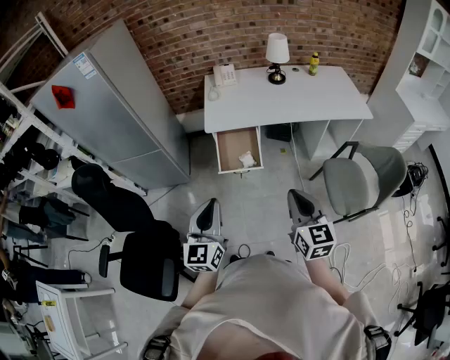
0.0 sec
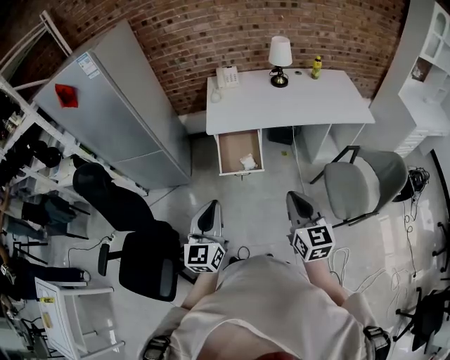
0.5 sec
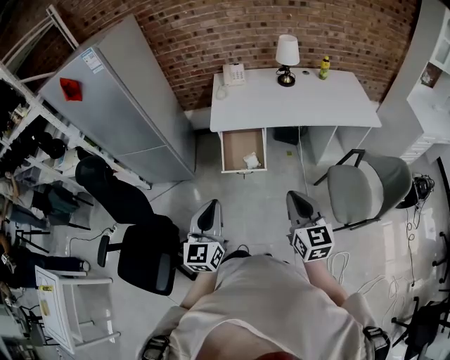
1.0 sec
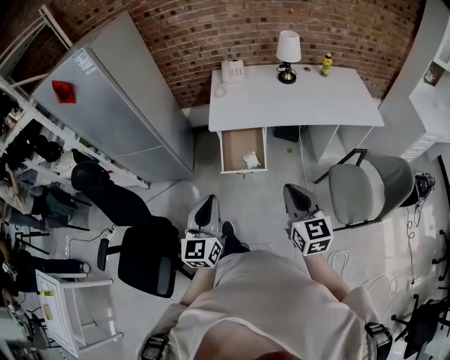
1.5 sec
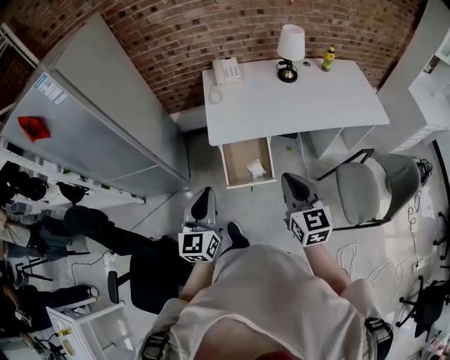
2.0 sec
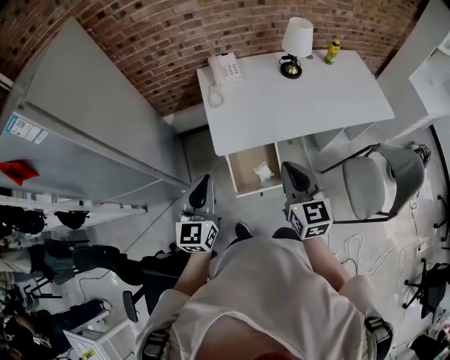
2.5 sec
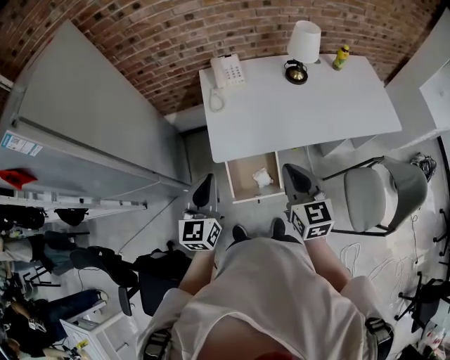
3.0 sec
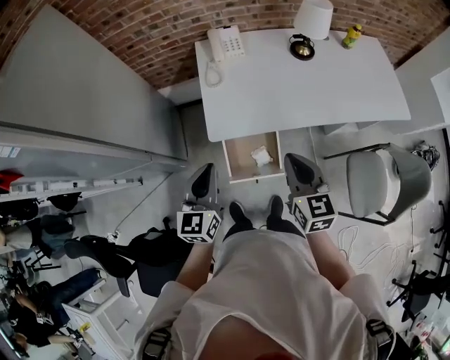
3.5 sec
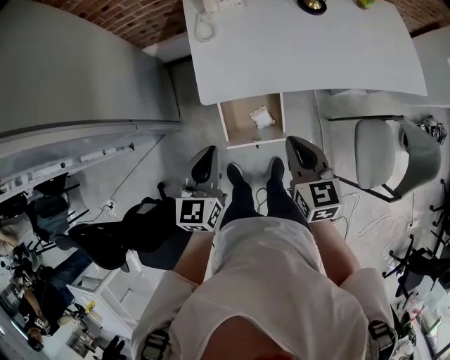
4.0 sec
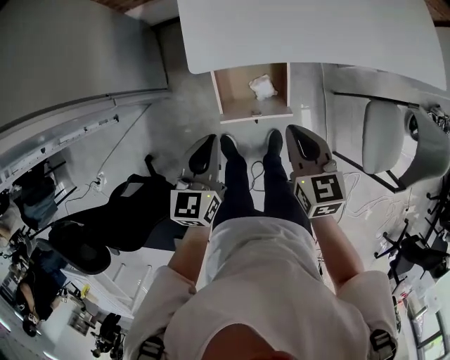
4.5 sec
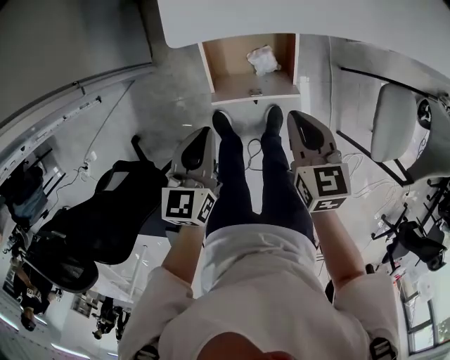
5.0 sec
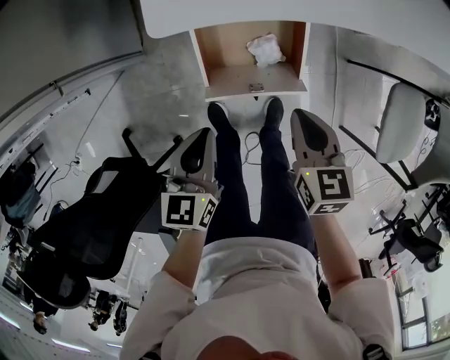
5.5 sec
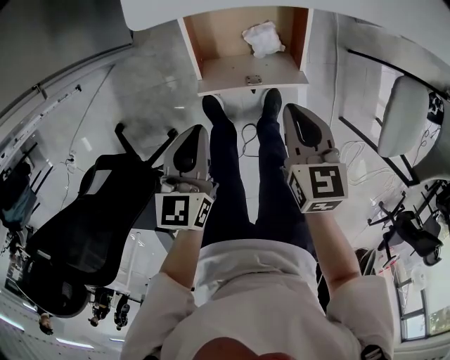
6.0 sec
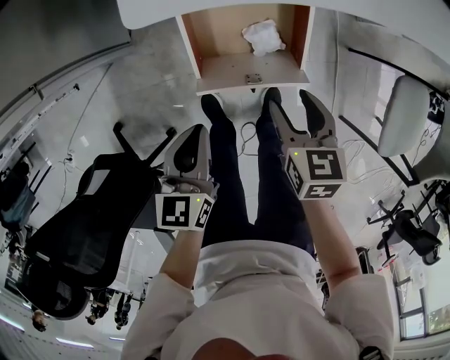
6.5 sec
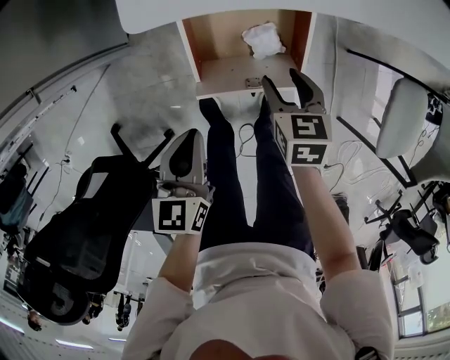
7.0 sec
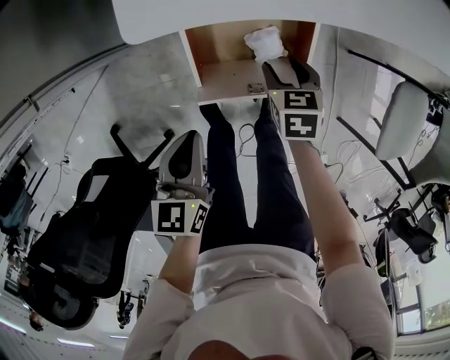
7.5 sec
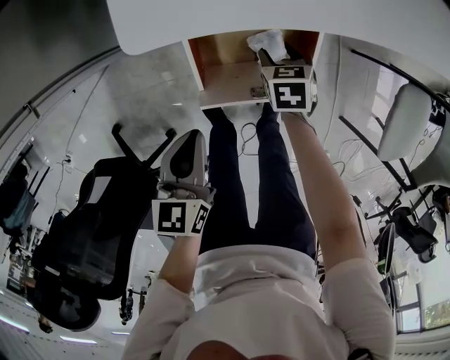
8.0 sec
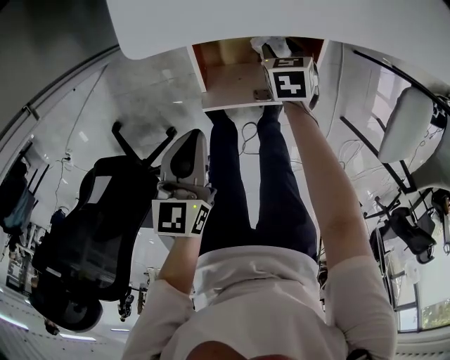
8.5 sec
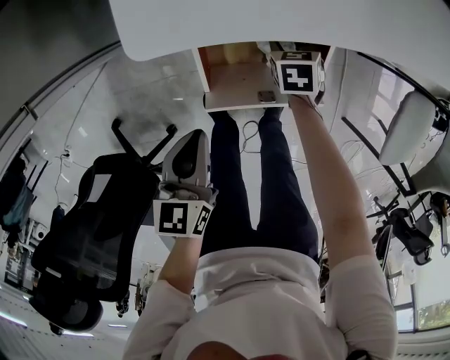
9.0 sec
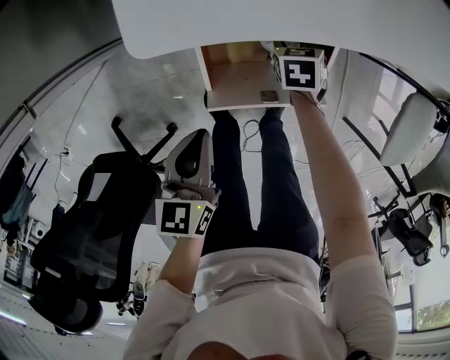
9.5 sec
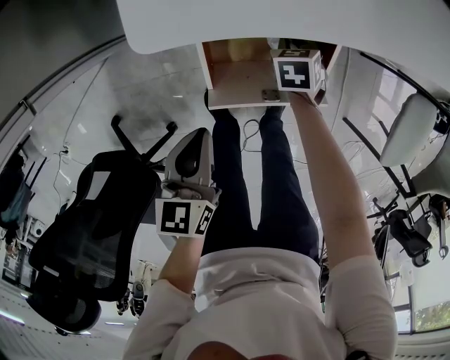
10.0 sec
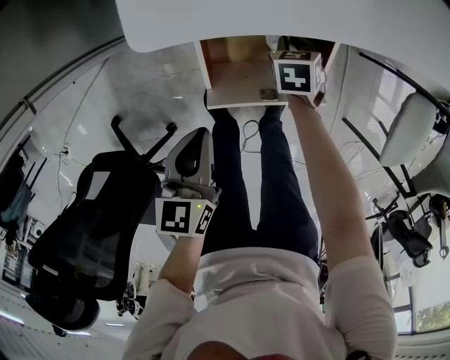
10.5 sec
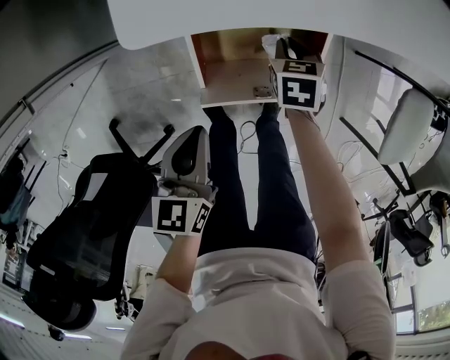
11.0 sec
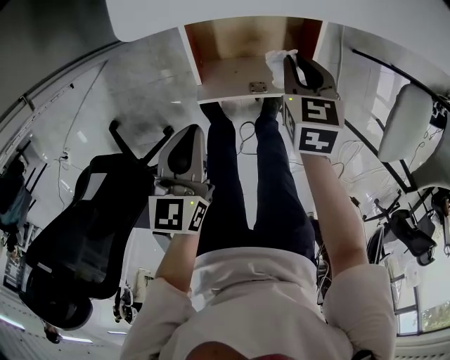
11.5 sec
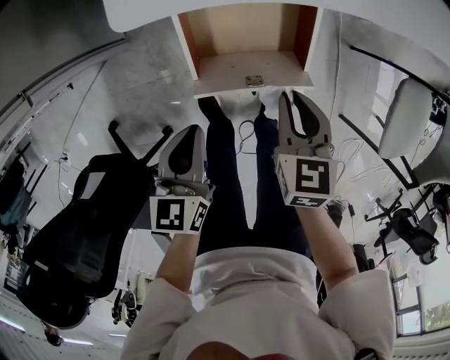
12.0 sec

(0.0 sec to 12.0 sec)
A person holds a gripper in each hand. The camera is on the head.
0.0 sec - 2.0 sec: Both grippers travel together forward, some 25 cm.
2.0 sec - 4.0 sec: Both grippers move forward and downward, approximately 20 cm.
4.0 sec - 6.0 sec: The two grippers go about 30 cm downward. The left gripper rotates about 20 degrees.
6.0 sec - 8.0 sec: The right gripper travels downward and forward by roughly 20 cm, and opens up.
8.0 sec - 10.0 sec: The right gripper moves some 5 cm, and closes up.
10.0 sec - 12.0 sec: The right gripper travels upward and backward by some 25 cm, and rotates roughly 20 degrees.

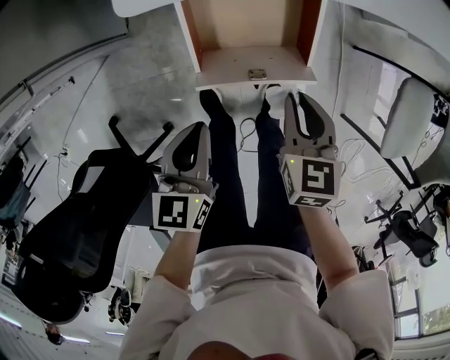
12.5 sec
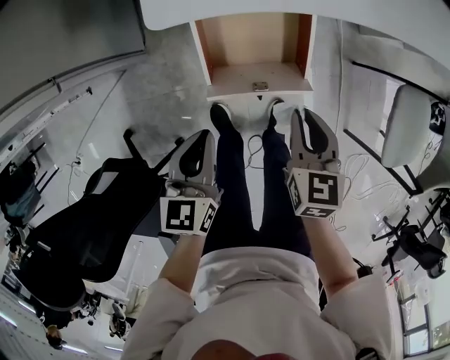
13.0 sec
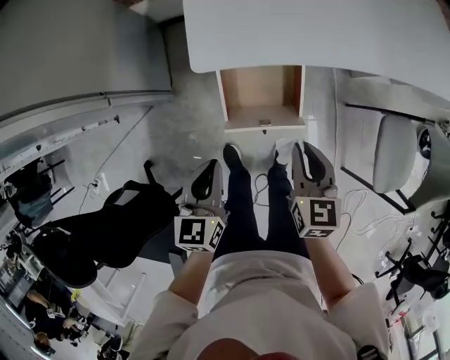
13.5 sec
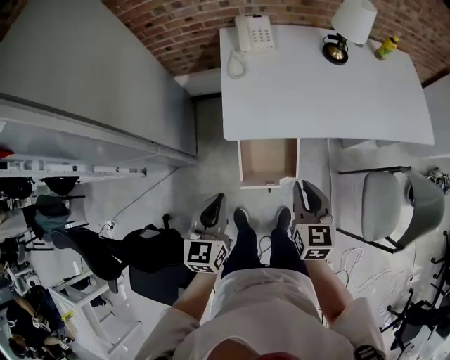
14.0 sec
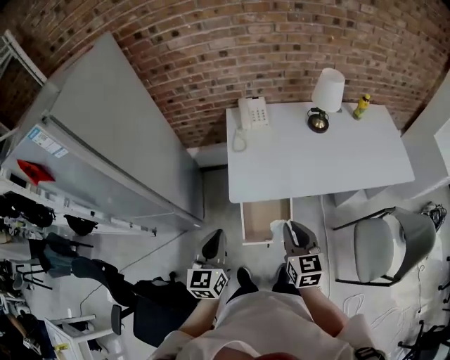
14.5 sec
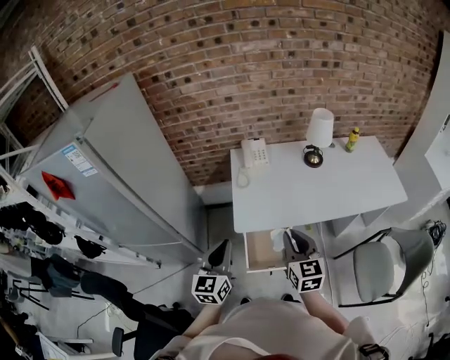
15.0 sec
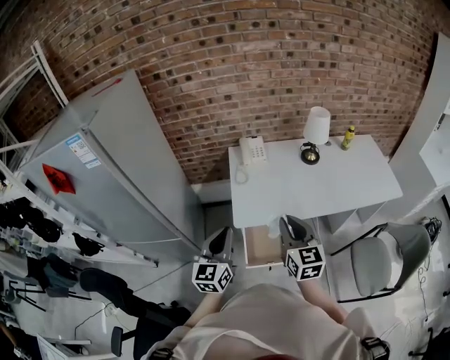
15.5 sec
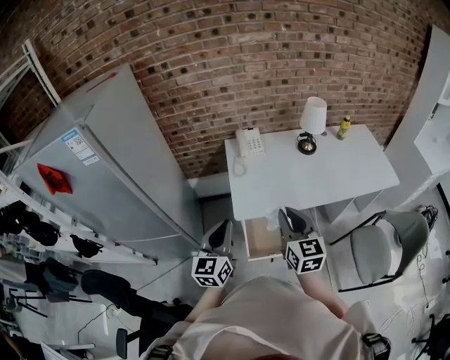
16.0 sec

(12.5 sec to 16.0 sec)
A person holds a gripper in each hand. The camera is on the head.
12.5 sec - 14.5 sec: Both grippers move upward, some 40 cm. The right gripper turns by roughly 30 degrees. Meanwhile the left gripper swivels roughly 30 degrees.
14.5 sec - 16.0 sec: The grippers both shift upward by about 10 cm.

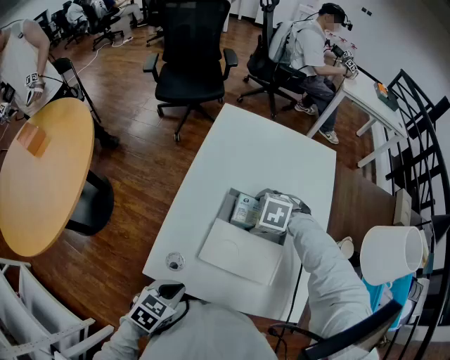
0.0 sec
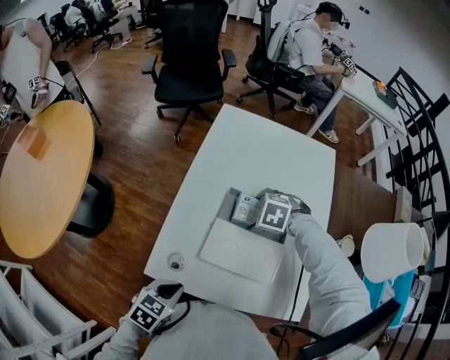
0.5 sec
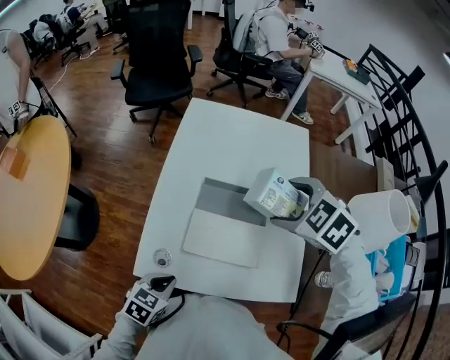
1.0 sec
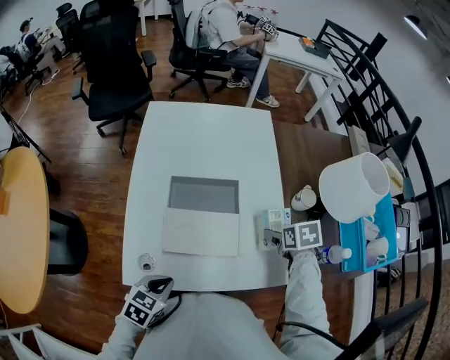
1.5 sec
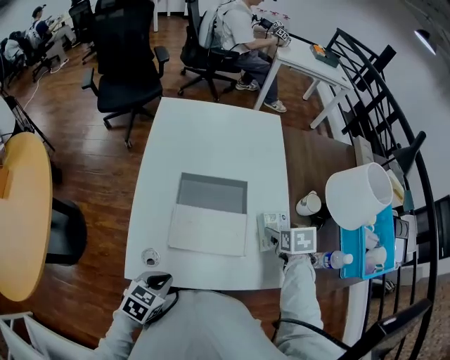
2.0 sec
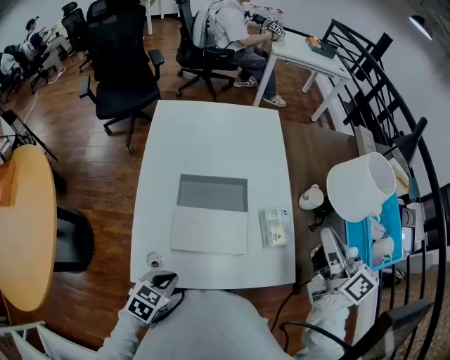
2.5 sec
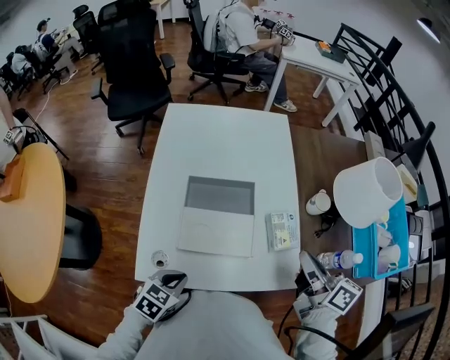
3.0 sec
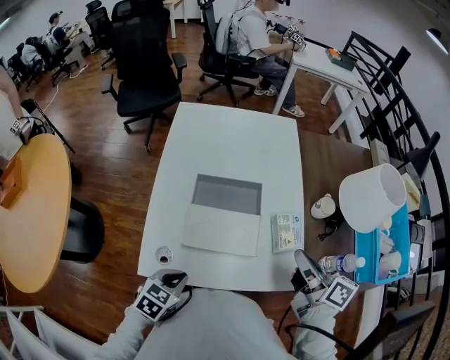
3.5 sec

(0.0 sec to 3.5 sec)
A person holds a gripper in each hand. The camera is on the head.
0.0 sec - 2.0 sec: The right gripper goes upward and returns, some 20 cm each way, and rolls clockwise, seen from behind, by approximately 80 degrees.
2.0 sec - 3.5 sec: The right gripper is displaced upward and backward by approximately 15 cm, angles its fingers upward, by about 50 degrees, and closes up.

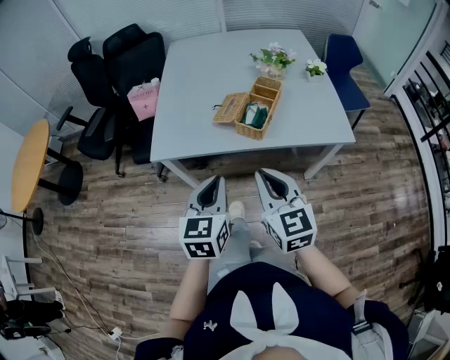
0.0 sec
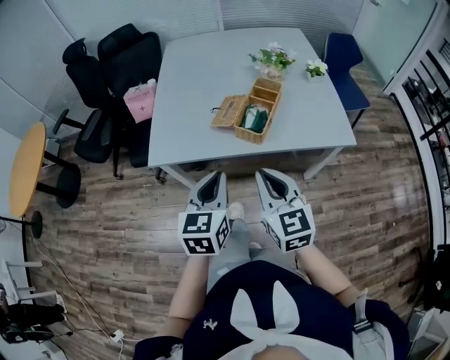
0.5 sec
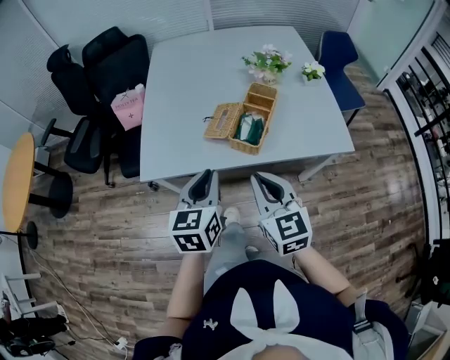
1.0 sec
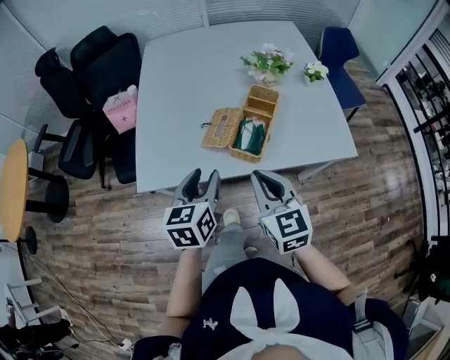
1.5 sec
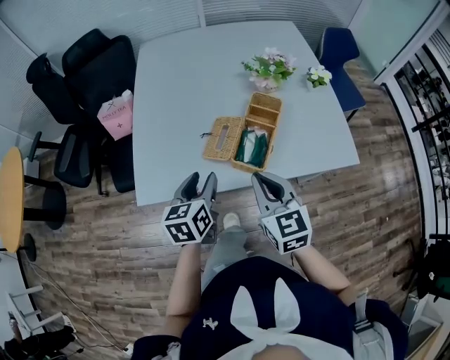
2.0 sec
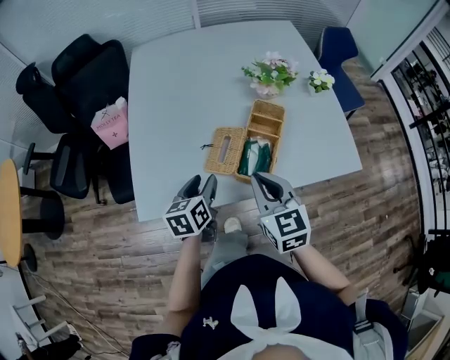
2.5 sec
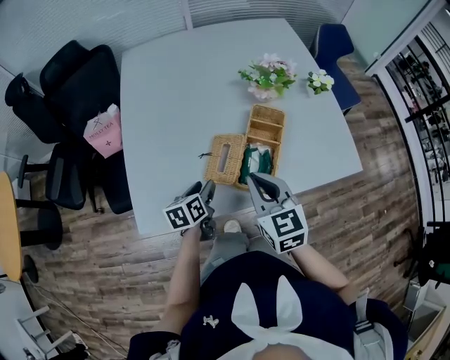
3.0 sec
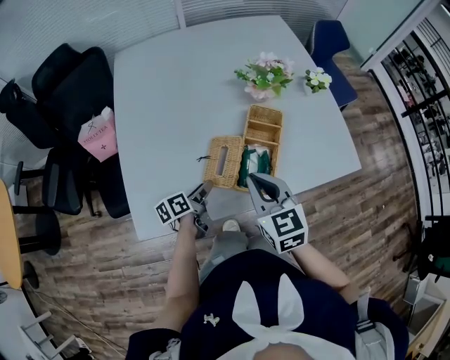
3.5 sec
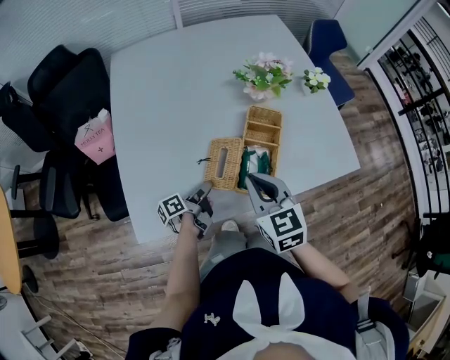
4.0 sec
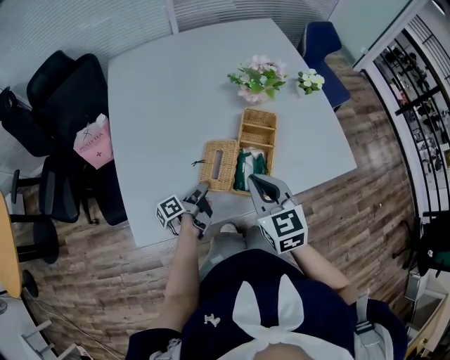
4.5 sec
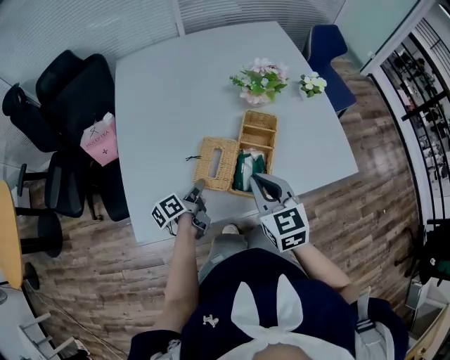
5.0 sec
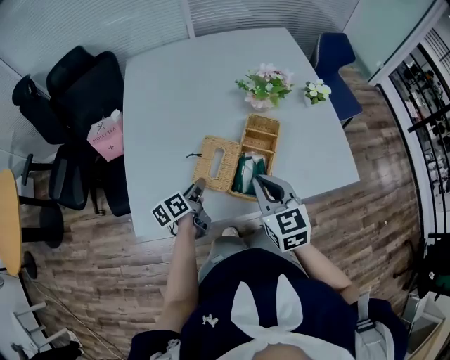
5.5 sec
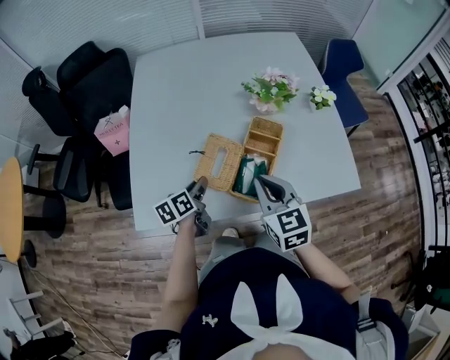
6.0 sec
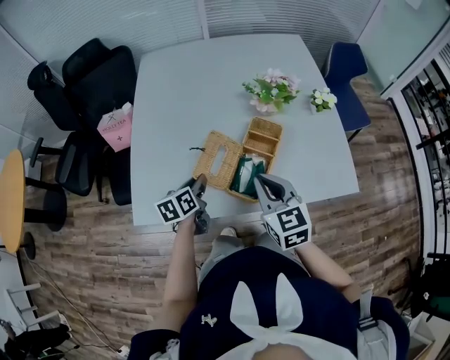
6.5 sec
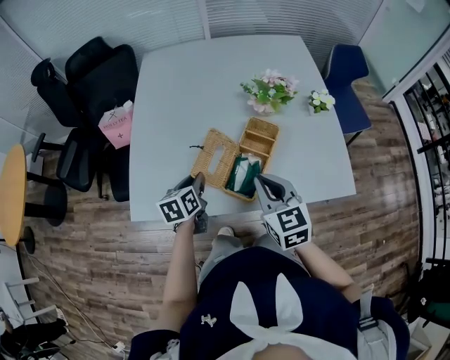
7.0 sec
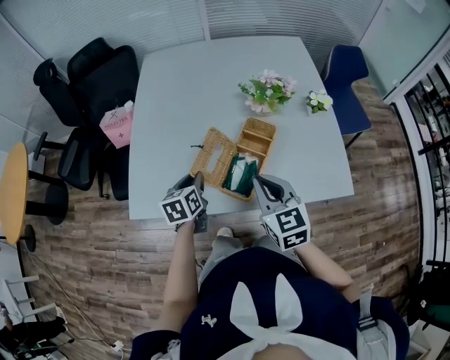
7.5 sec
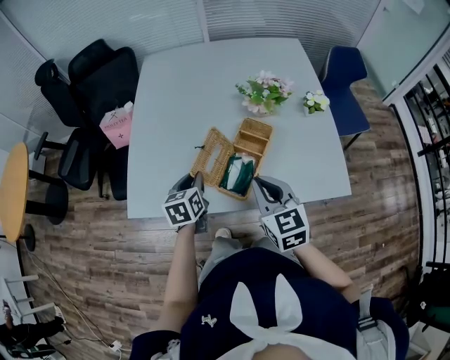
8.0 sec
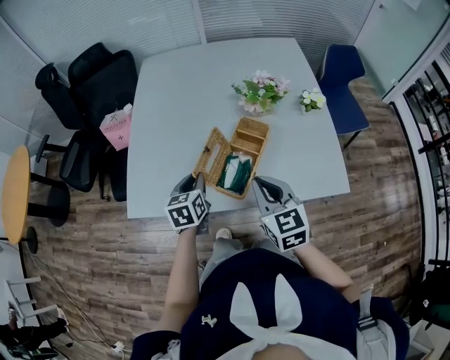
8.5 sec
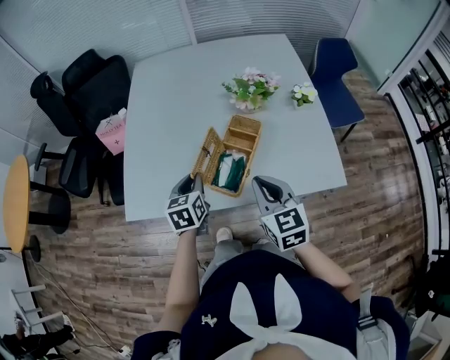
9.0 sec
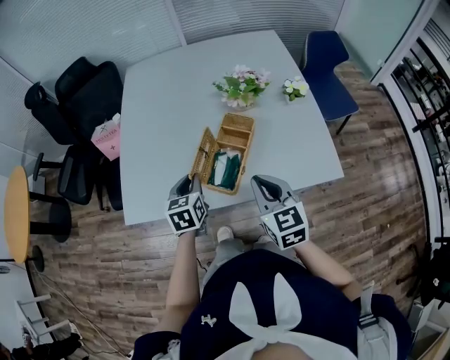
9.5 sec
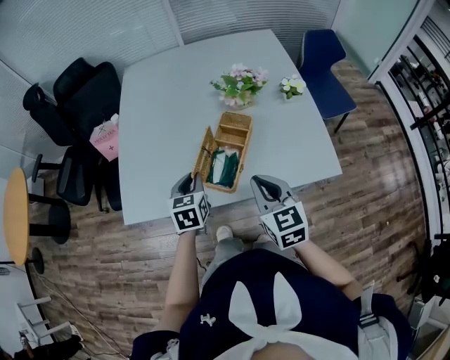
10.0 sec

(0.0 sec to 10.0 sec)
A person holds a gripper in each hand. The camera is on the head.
0.0 sec - 2.0 sec: Both grippers travel together forward, approximately 20 cm. The left gripper opens.
2.0 sec - 4.0 sec: The left gripper moves downward and forward, some 20 cm, and twists approximately 50 degrees counterclockwise, seen from behind, while the right gripper heads forward, covering about 10 cm.
4.0 sec - 6.0 sec: The right gripper is displaced to the right by some 5 cm, while the left gripper moves upward, about 10 cm, and turns by approximately 40 degrees.
6.0 sec - 8.0 sec: The right gripper shifts by some 5 cm; the left gripper travels upward by about 5 cm, and rotates some 30 degrees.
8.0 sec - 10.0 sec: The right gripper changes place by about 5 cm; the left gripper changes place by roughly 5 cm.
